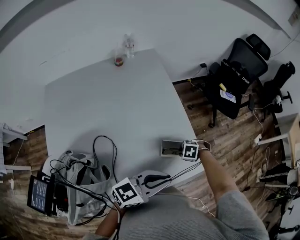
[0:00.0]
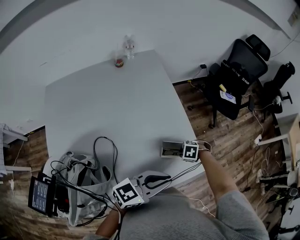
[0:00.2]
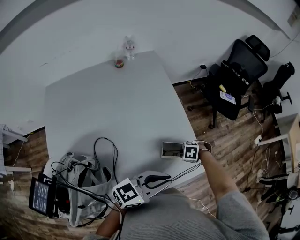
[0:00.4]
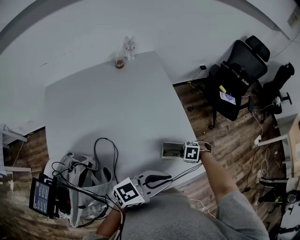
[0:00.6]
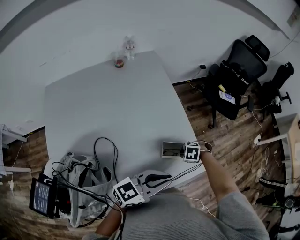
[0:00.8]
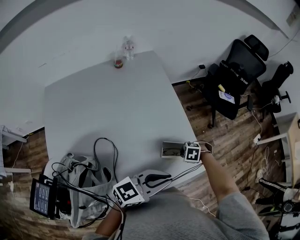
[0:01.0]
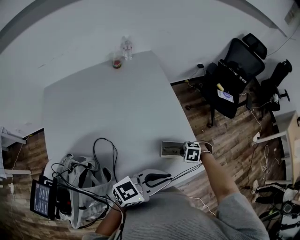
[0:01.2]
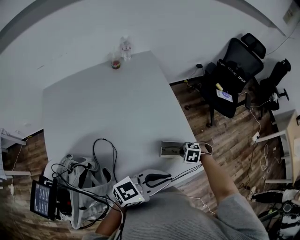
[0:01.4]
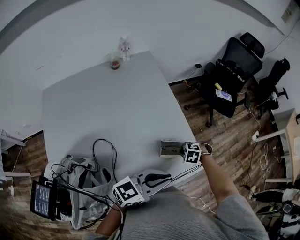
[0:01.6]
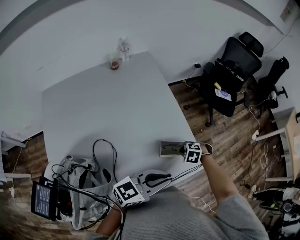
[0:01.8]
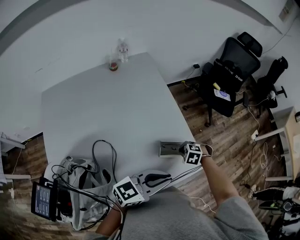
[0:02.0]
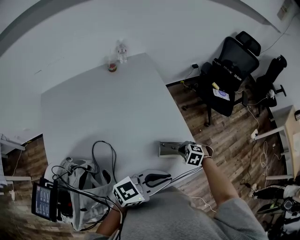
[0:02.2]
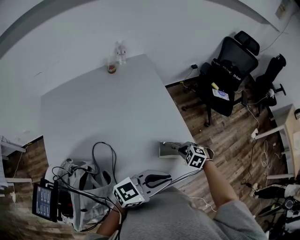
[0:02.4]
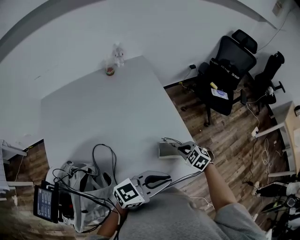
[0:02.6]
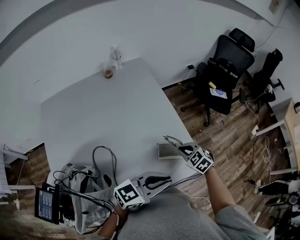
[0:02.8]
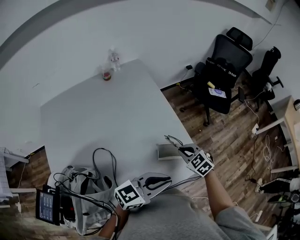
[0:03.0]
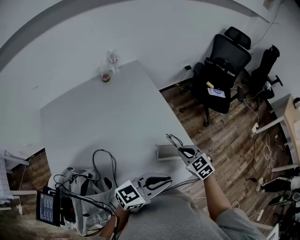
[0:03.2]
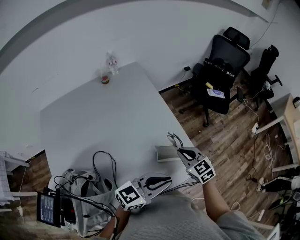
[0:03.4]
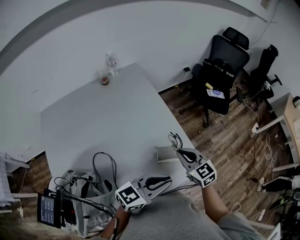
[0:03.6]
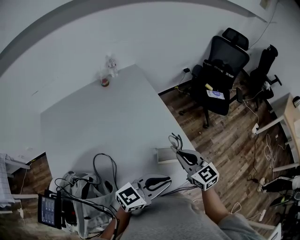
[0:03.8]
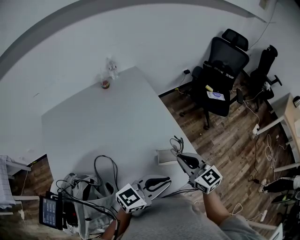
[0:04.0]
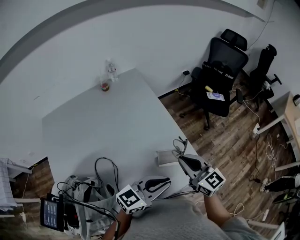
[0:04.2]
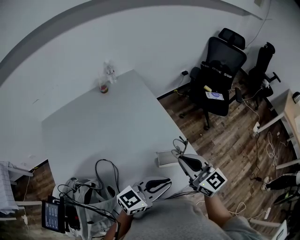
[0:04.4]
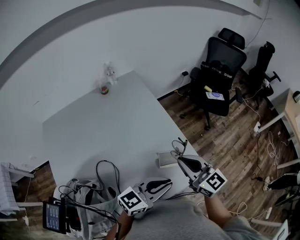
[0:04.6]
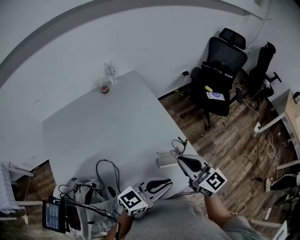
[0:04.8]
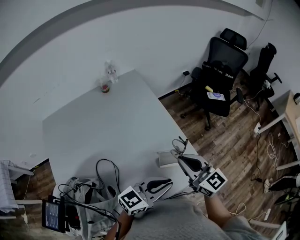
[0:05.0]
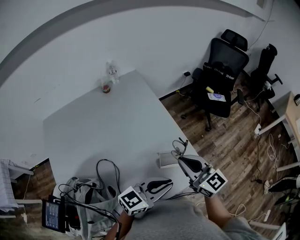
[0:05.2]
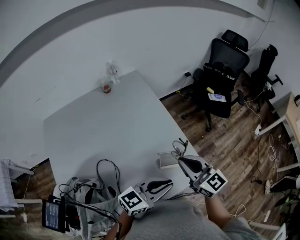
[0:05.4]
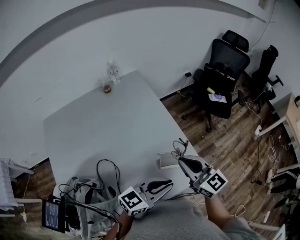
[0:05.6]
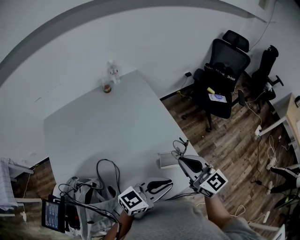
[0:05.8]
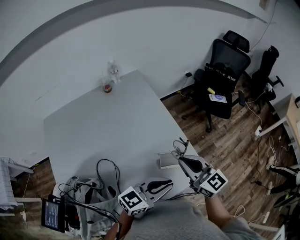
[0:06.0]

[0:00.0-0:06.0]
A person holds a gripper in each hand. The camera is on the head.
0:00.0 to 0:01.6: The grippers stay close to where they were, moving slightly.
0:01.6 to 0:03.0: The right gripper shifts roughly 10 cm upward, and points its fingers approximately 30 degrees further upward.
0:03.0 to 0:04.4: The right gripper goes roughly 20 cm upward, and tilts its fingers some 40 degrees upward.
0:04.4 to 0:06.0: Neither gripper changes place.

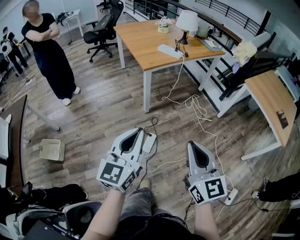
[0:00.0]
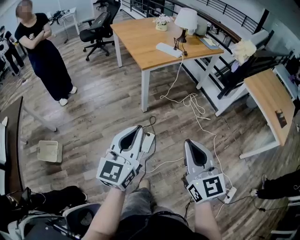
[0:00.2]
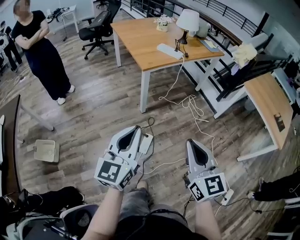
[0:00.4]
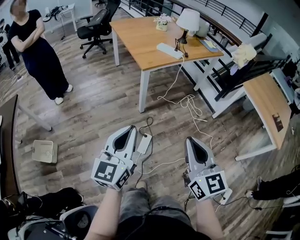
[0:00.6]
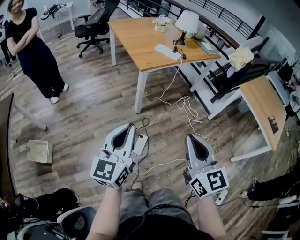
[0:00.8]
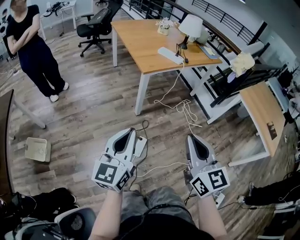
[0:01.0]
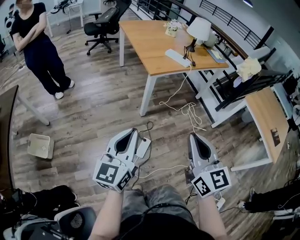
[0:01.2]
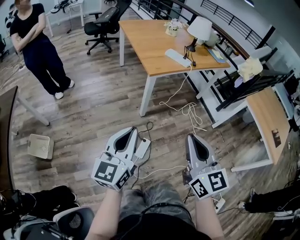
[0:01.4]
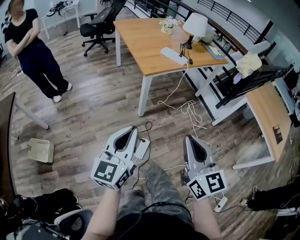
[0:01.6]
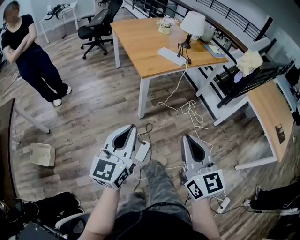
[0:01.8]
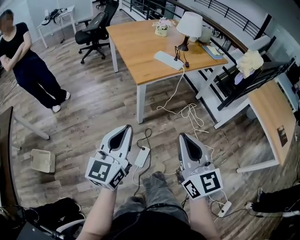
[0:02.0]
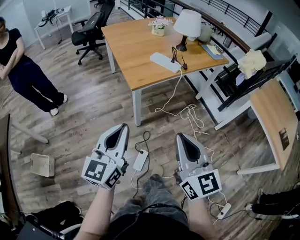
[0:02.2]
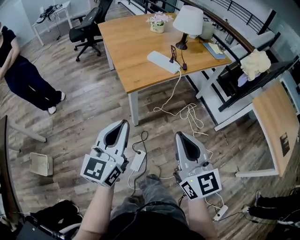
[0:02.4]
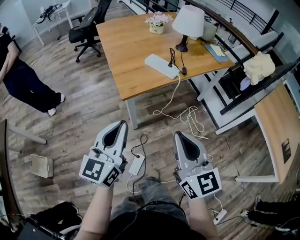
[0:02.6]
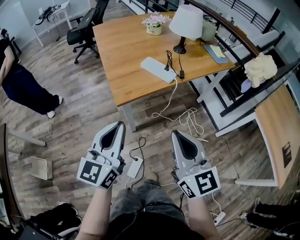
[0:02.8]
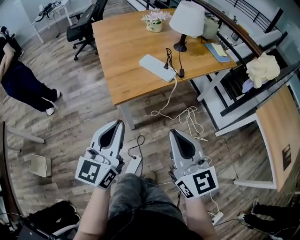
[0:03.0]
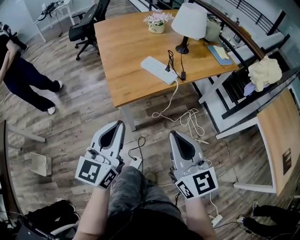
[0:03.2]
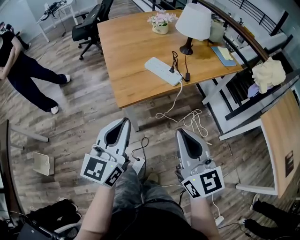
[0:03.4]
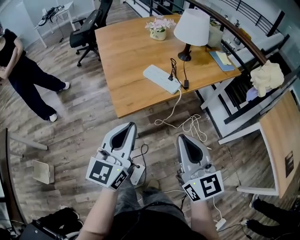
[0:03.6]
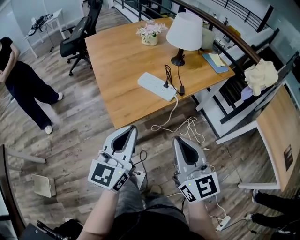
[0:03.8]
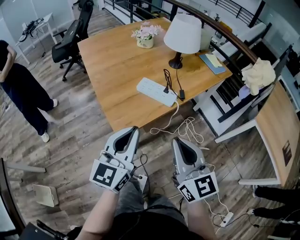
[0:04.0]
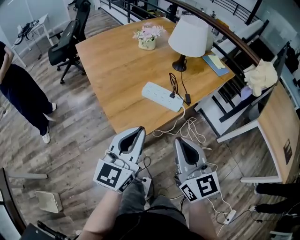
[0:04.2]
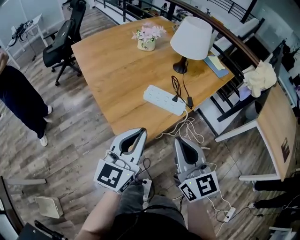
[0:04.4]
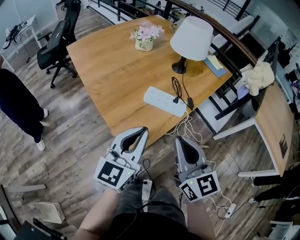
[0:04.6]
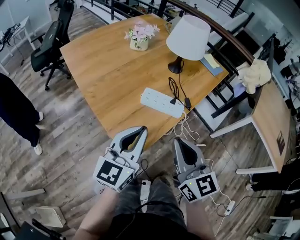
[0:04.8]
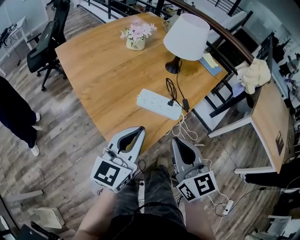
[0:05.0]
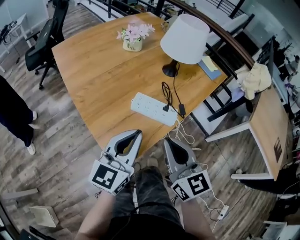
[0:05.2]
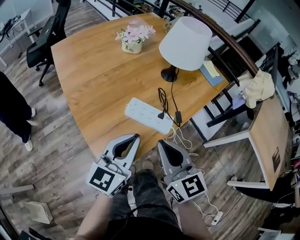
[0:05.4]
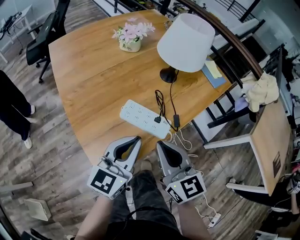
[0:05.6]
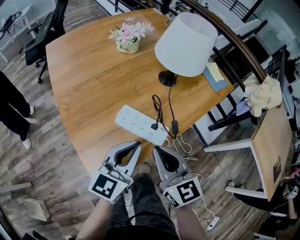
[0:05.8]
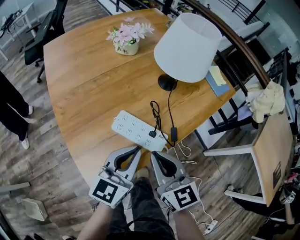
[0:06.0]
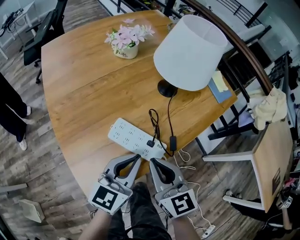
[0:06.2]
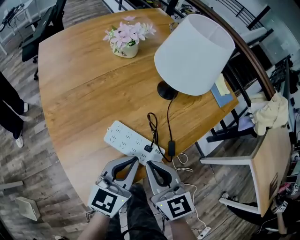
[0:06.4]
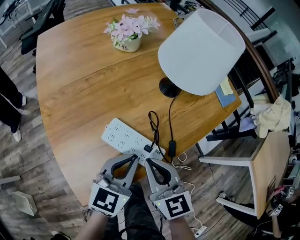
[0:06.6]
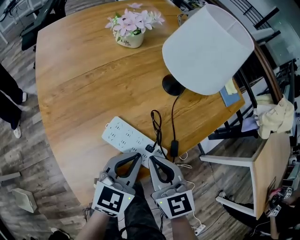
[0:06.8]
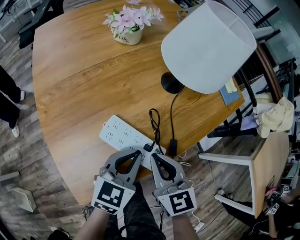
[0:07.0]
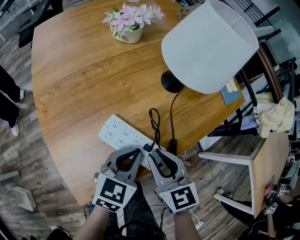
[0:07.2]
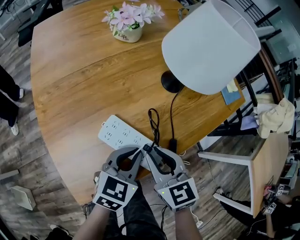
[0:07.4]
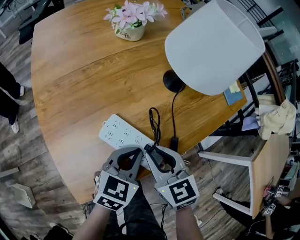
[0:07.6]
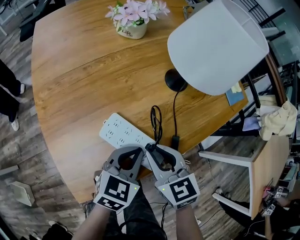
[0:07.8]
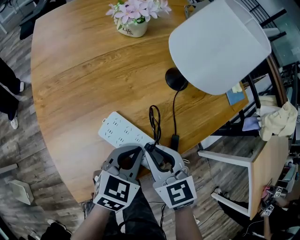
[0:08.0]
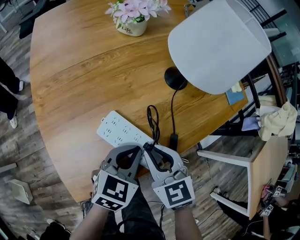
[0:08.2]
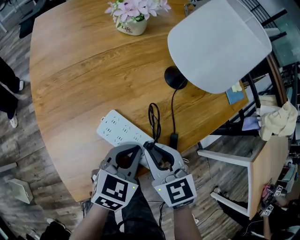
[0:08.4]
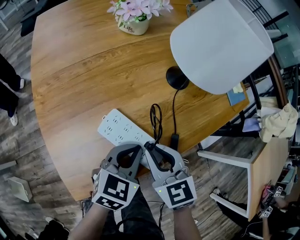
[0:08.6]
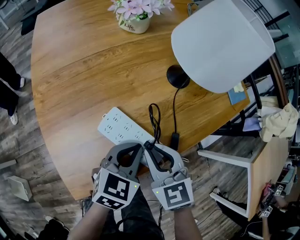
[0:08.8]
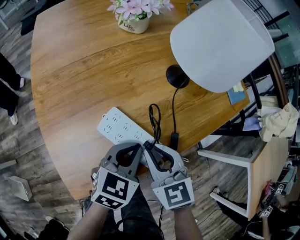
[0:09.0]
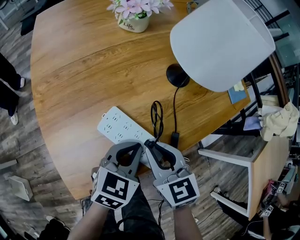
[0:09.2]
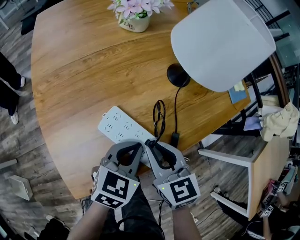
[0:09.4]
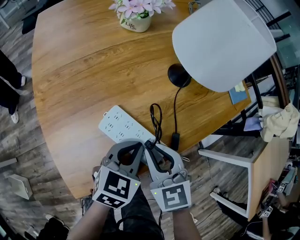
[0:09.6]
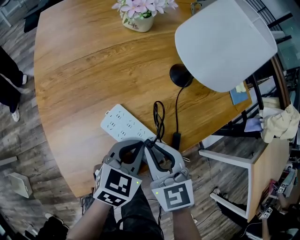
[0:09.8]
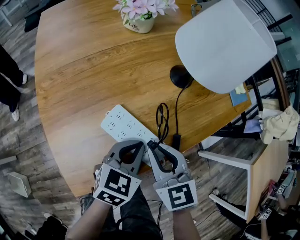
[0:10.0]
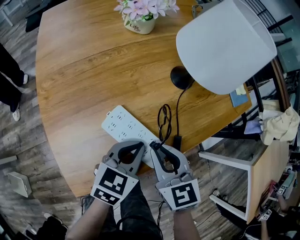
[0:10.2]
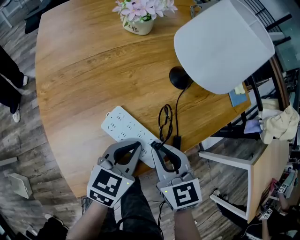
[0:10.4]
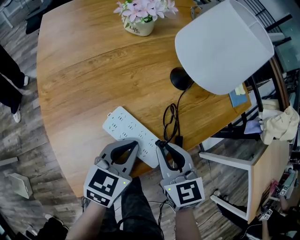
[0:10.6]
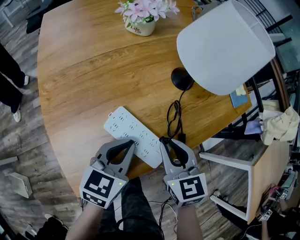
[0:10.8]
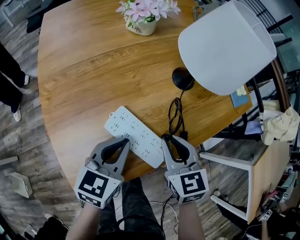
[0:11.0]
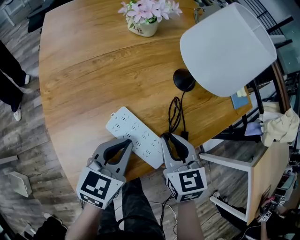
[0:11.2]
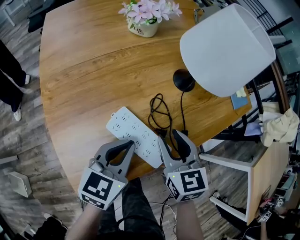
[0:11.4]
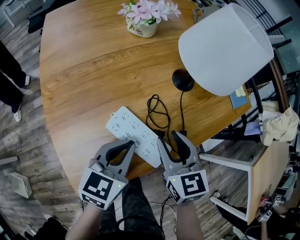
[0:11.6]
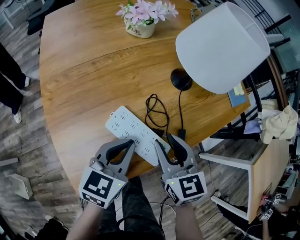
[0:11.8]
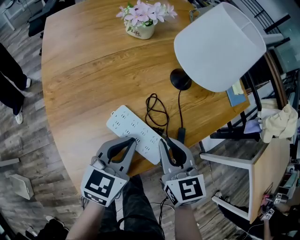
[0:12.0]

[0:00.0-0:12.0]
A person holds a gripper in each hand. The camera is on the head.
0:00.0 to 0:01.6: The left gripper is displaced forward and to the left by some 10 cm. Meanwhile the right gripper travels forward by roughly 10 cm.
0:01.6 to 0:03.0: The right gripper goes about 30 cm forward. Meanwhile the left gripper goes about 30 cm forward and to the right.
0:03.0 to 0:04.4: The left gripper moves forward, approximately 20 cm, and rotates some 20 degrees. Meanwhile the right gripper goes about 20 cm forward and to the left.
0:04.4 to 0:06.0: The left gripper goes some 20 cm forward, downward and to the right. The right gripper moves forward and downward, roughly 20 cm.
0:06.0 to 0:07.6: The two grippers go about 10 cm downward and forward. The right gripper swivels roughly 20 degrees, while the left gripper rotates some 20 degrees.
0:07.6 to 0:10.4: The grippers make only small movements.
0:10.4 to 0:12.0: The right gripper opens and closes again.

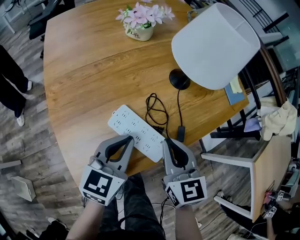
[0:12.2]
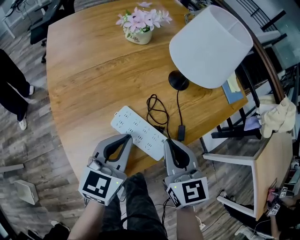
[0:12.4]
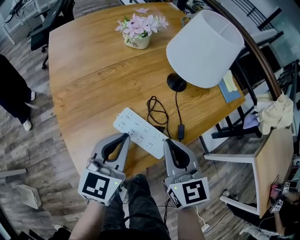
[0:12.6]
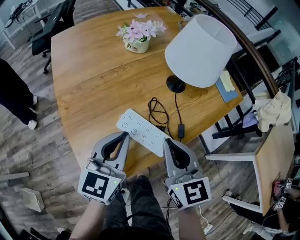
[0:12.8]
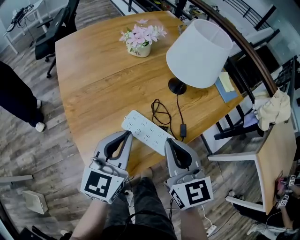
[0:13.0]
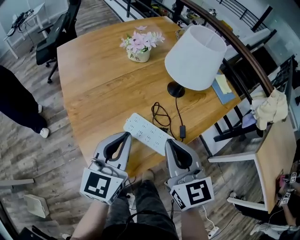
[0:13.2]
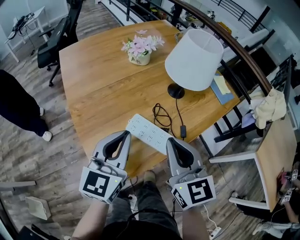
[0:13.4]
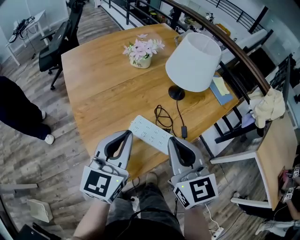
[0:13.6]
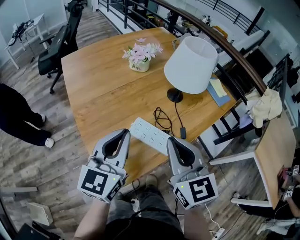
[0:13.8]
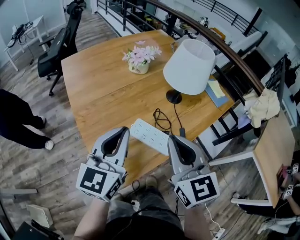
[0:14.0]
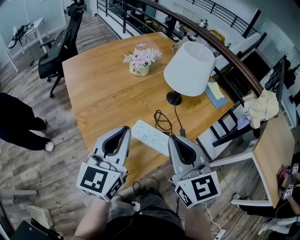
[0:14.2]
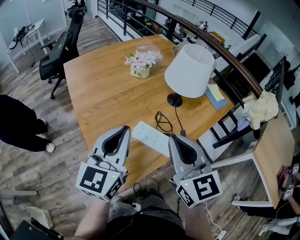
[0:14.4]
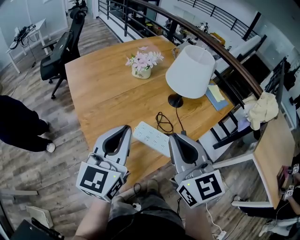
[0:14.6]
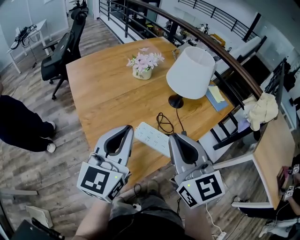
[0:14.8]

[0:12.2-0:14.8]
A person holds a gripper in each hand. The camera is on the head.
0:12.2 to 0:13.4: The right gripper travels upward by approximately 15 cm. Meanwhile the left gripper shifts some 15 cm upward and to the left.
0:13.4 to 0:14.8: Both grippers move upward, approximately 10 cm.

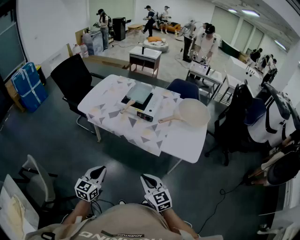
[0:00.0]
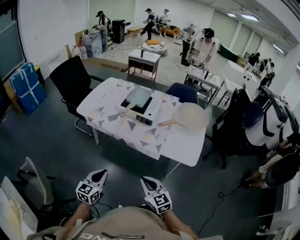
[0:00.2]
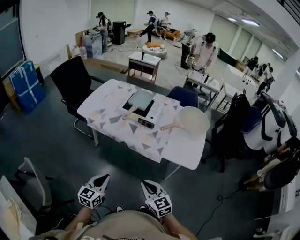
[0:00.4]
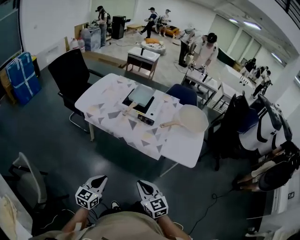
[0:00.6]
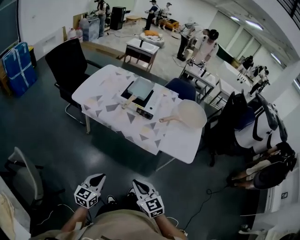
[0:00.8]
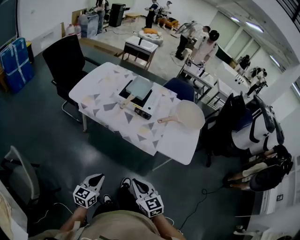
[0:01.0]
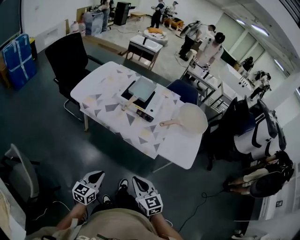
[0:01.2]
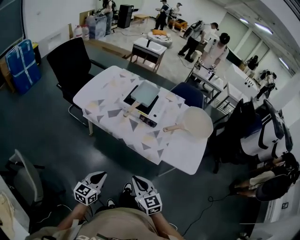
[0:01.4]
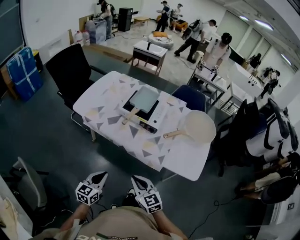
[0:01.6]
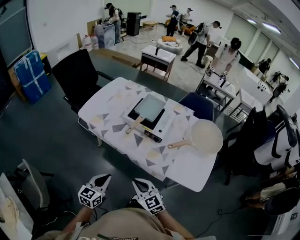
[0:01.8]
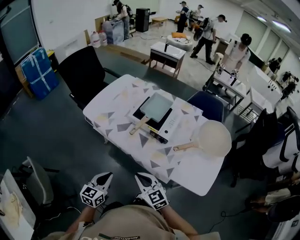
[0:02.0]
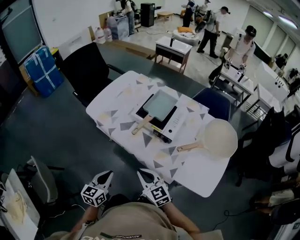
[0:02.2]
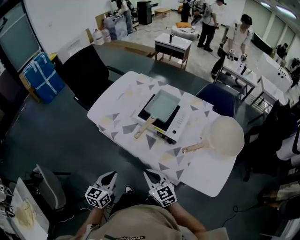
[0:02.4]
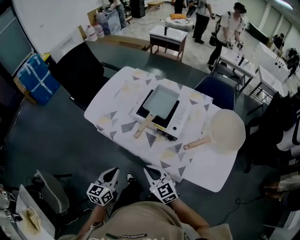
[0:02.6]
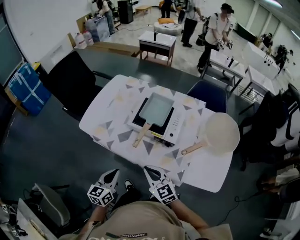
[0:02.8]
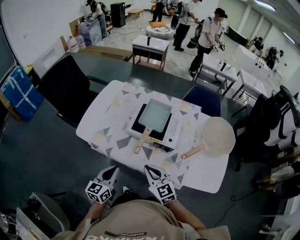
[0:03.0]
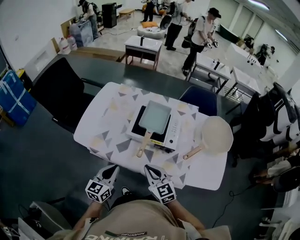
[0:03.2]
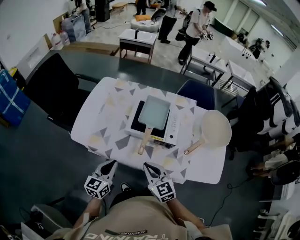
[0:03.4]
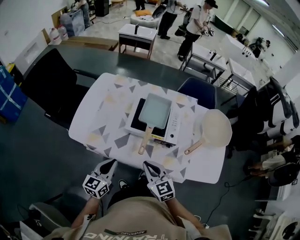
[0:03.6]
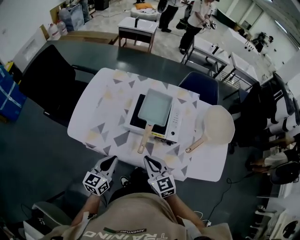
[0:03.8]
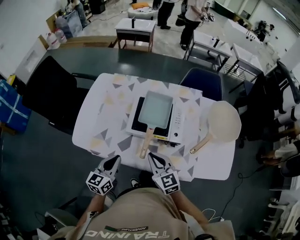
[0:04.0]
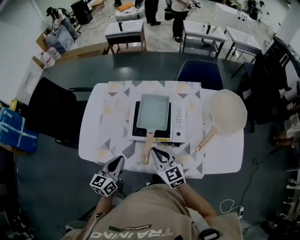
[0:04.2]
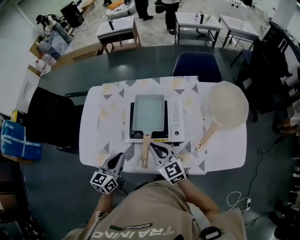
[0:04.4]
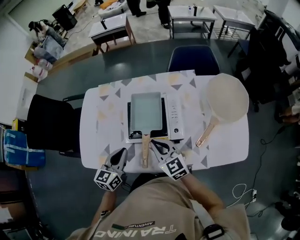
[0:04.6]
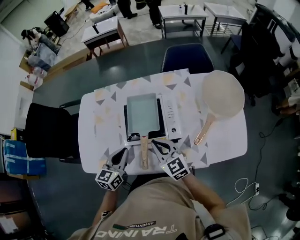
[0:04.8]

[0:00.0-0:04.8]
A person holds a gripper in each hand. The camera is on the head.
0:00.0 to 0:01.6: The right gripper shifts roughly 15 cm forward and to the left. Meanwhile the left gripper goes some 10 cm forward and downward.
0:01.6 to 0:03.2: The grippers both shift forward by roughly 25 cm.
0:03.2 to 0:04.8: The grippers both shift forward by about 15 cm.
